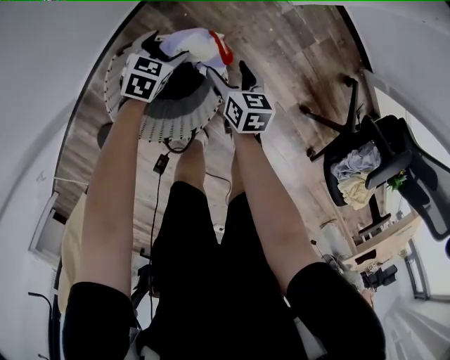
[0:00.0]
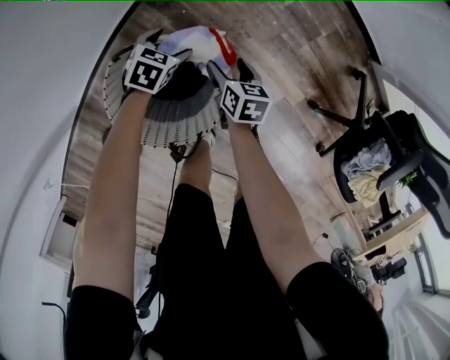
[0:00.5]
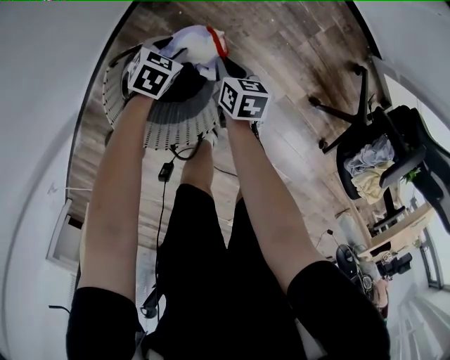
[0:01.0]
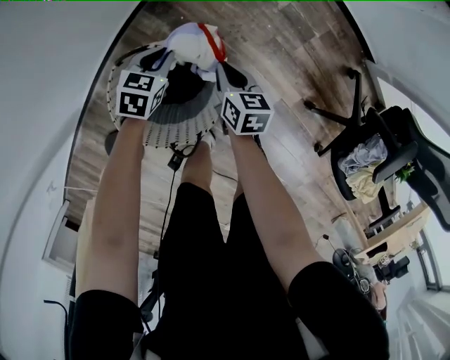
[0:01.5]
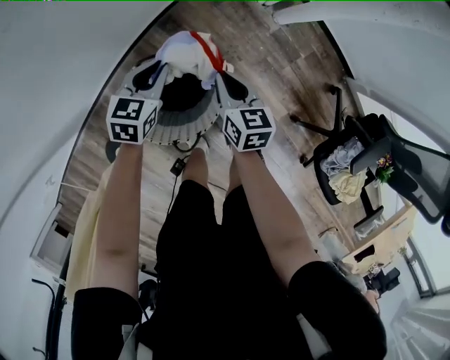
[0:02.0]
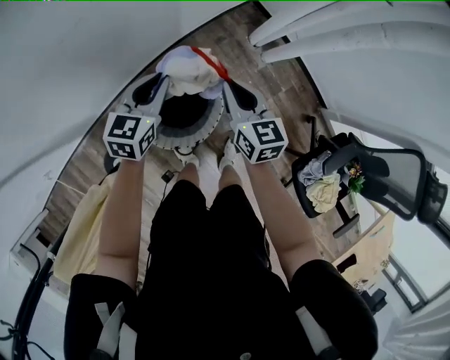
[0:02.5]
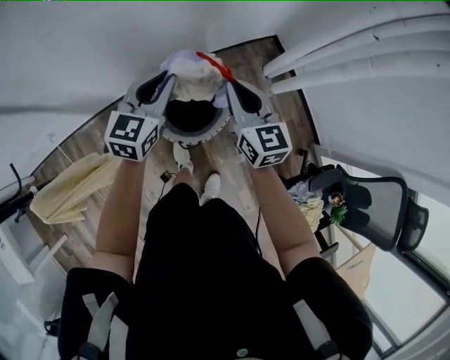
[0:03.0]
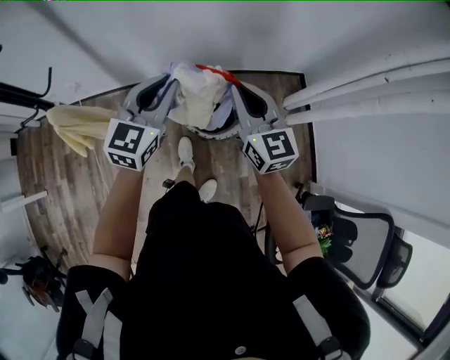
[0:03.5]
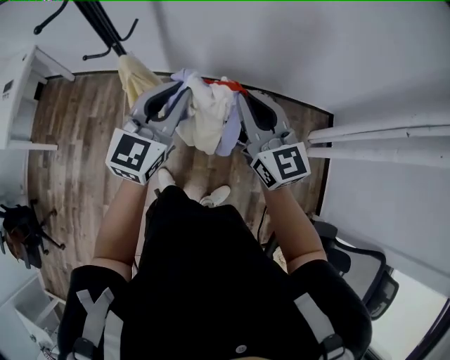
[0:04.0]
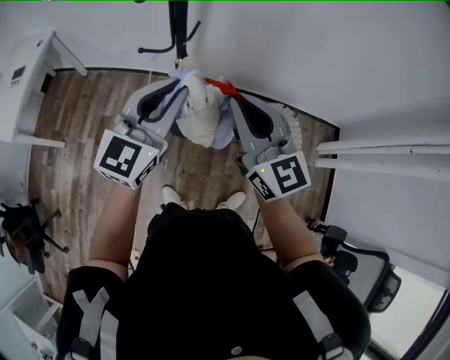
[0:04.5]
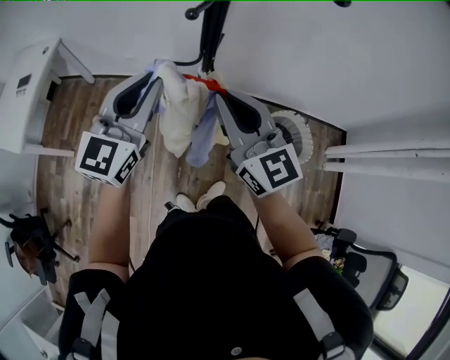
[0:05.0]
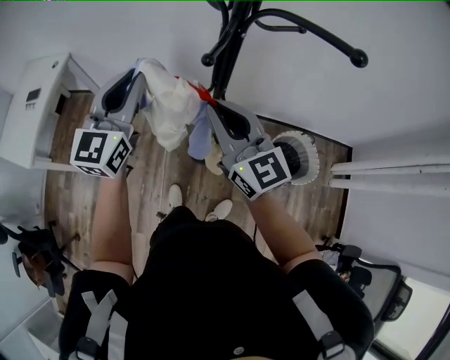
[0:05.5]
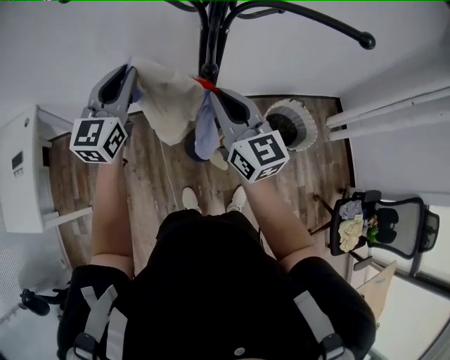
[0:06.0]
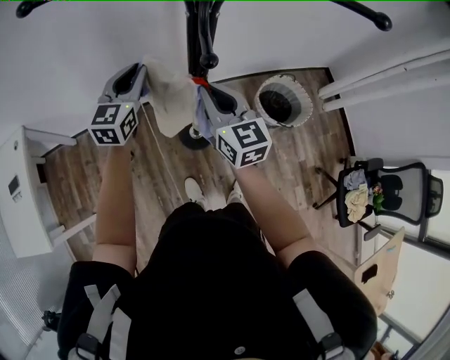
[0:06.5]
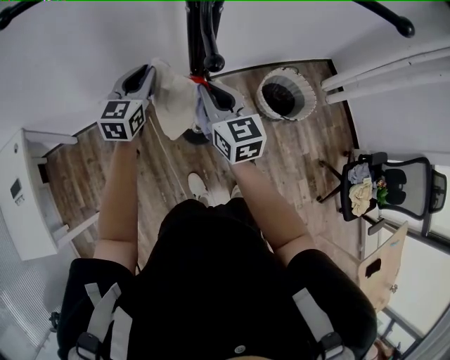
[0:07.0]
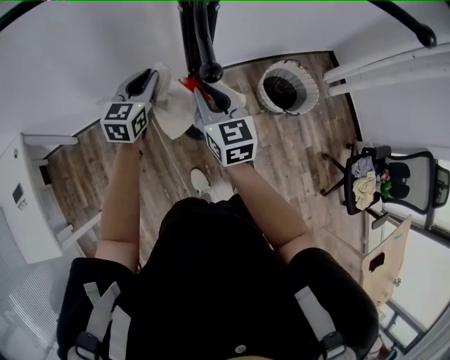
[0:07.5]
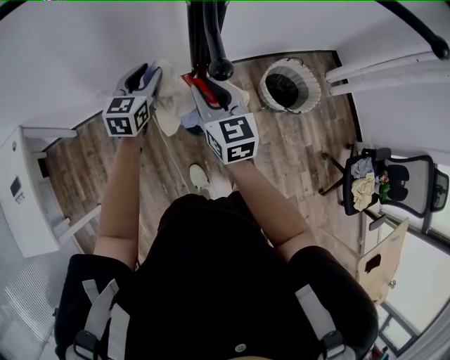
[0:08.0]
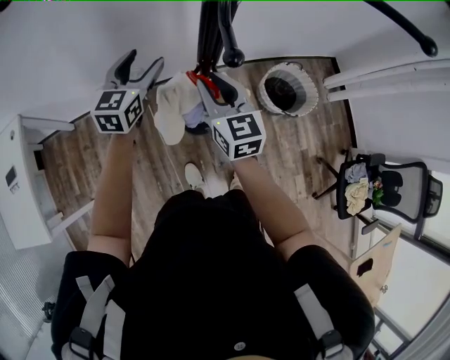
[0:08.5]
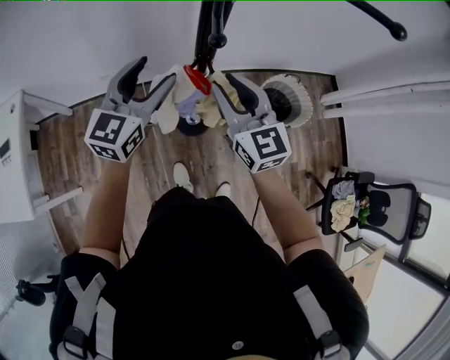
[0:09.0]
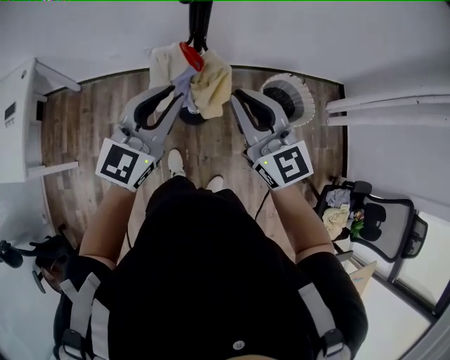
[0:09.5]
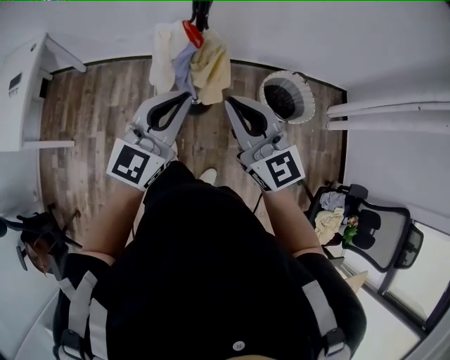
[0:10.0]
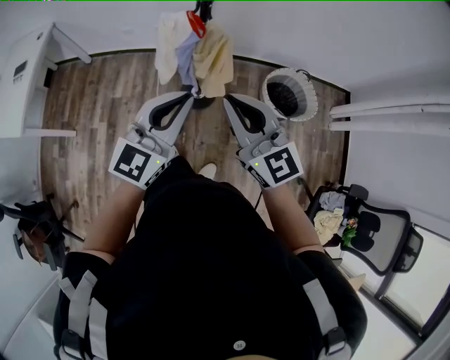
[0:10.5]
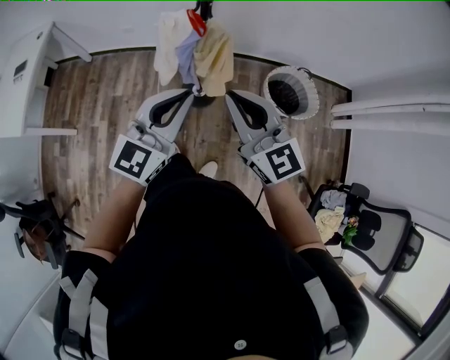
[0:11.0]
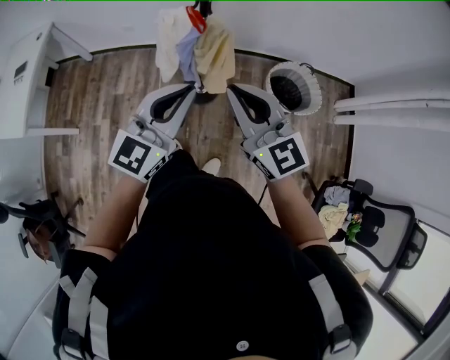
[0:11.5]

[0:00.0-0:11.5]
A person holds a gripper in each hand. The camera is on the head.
0:00.0 to 0:02.0: Both grippers move upward, roughly 20 cm. The right gripper closes its fingers, while the left gripper closes.
0:02.0 to 0:04.0: The two grippers travel together, roughly 60 cm. The left gripper tilts its fingers about 40 degrees upward. The right gripper is displaced upward by some 60 cm, and tilts its fingers roughly 30 degrees upward.
0:04.0 to 0:06.0: Both grippers are carried to the left and forward, roughly 50 cm.
0:06.0 to 0:07.5: The right gripper travels downward by some 15 cm, and swivels some 20 degrees; the left gripper is displaced downward and forward by roughly 20 cm, and turns by roughly 20 degrees.
0:07.5 to 0:09.5: The grippers both shift backward, upward and to the right by roughly 30 cm. The right gripper rotates approximately 30 degrees. Meanwhile the left gripper opens, then closes once more.
0:09.5 to 0:11.5: The right gripper is displaced backward by some 10 cm; the left gripper shifts about 15 cm backward and to the right.

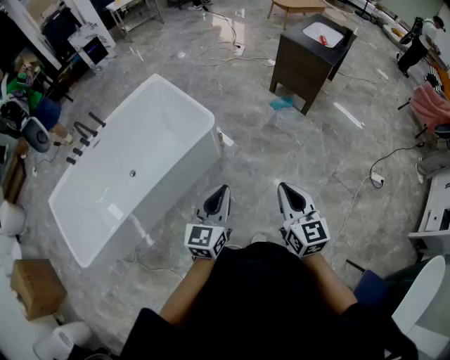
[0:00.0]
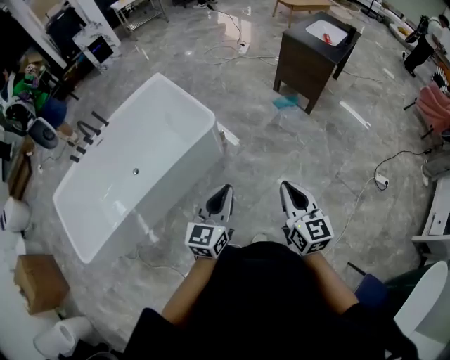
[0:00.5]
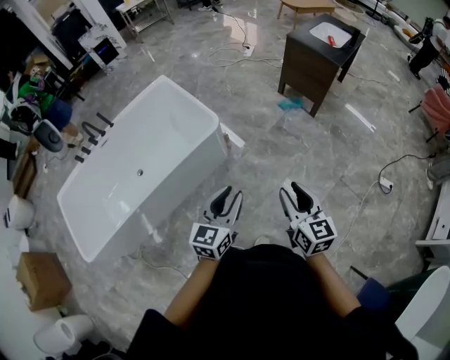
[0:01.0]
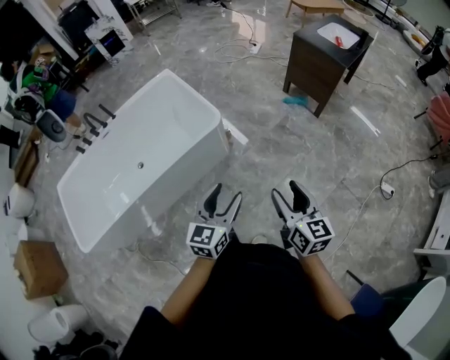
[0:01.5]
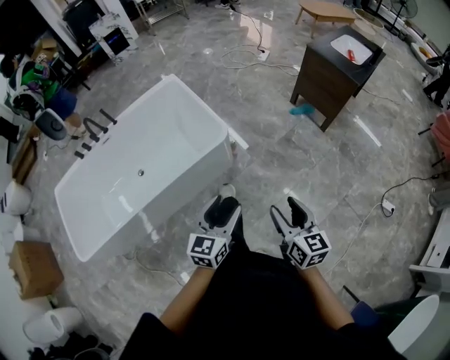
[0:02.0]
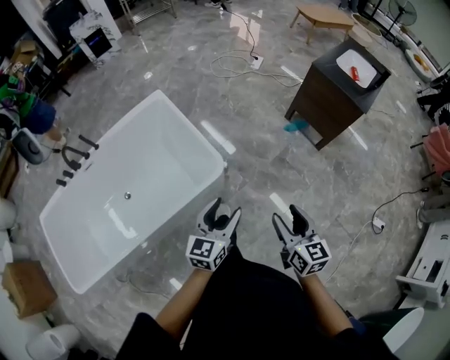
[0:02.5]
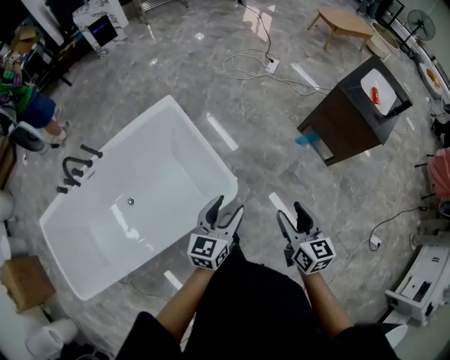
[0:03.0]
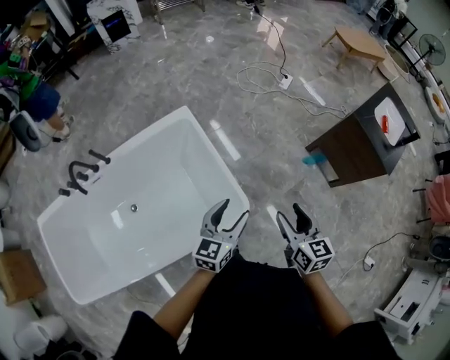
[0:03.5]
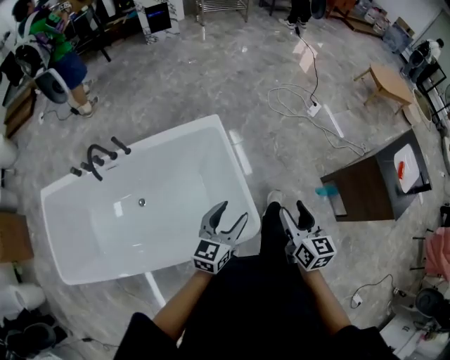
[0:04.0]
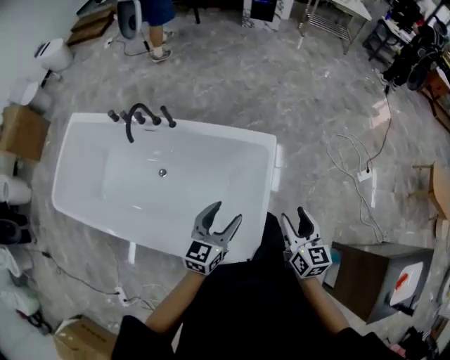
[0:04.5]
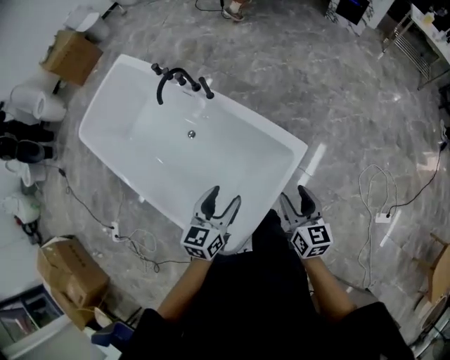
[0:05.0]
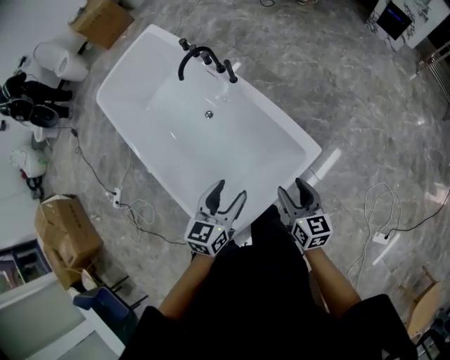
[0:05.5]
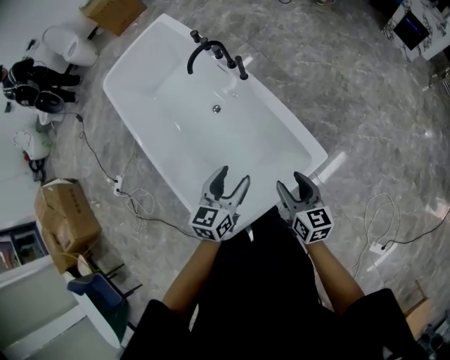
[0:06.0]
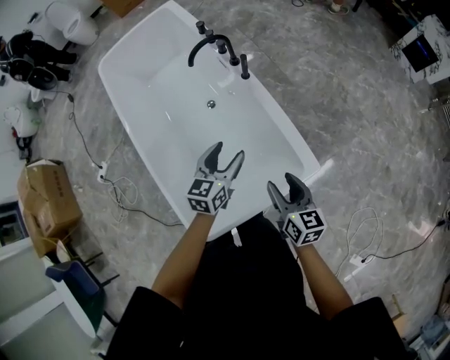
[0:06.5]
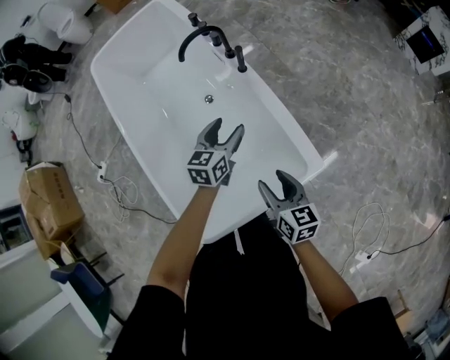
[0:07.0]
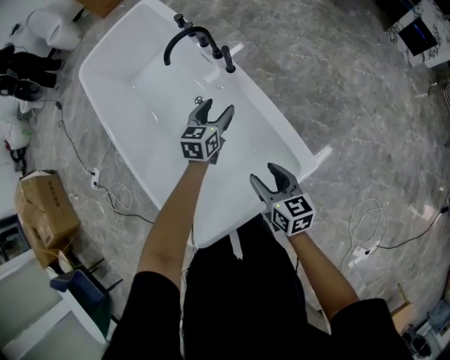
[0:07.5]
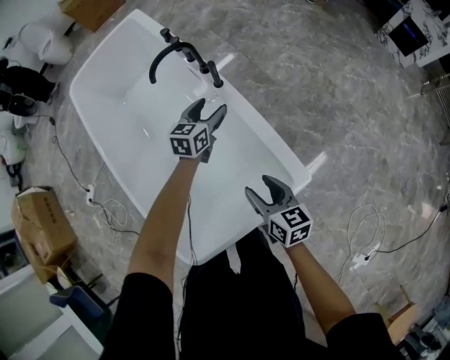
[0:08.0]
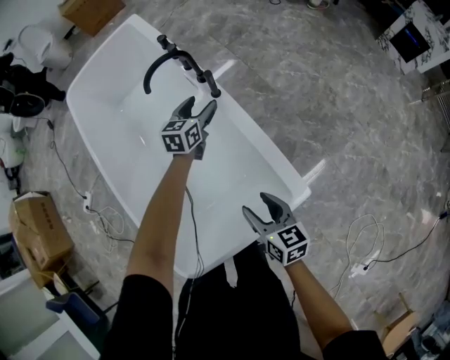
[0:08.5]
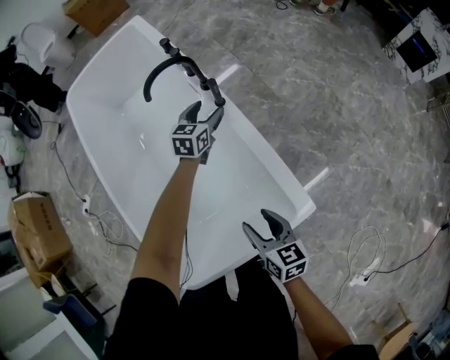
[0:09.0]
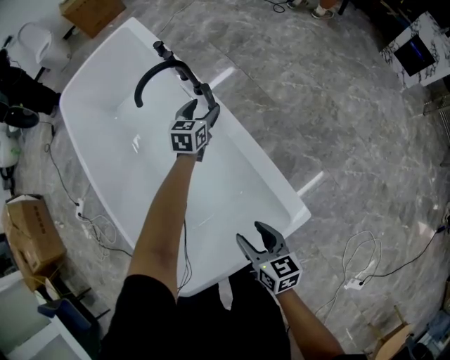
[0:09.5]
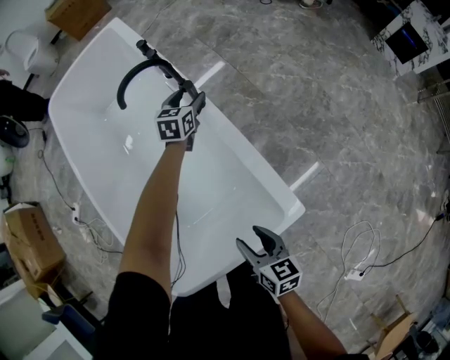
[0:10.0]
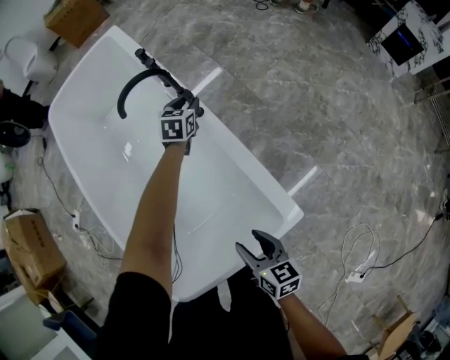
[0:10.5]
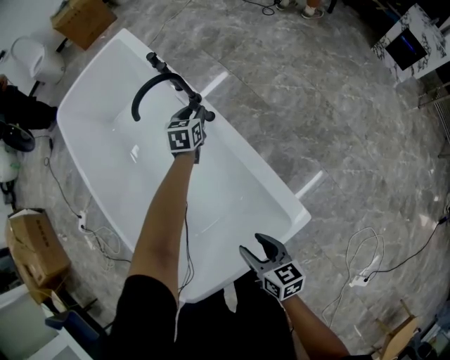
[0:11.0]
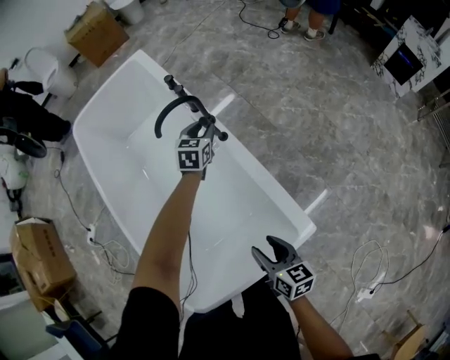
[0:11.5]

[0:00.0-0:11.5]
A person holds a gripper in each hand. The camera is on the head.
0:00.0 to 0:02.0: The right gripper goes approximately 10 cm forward and downward, and opens up. Meanwhile the left gripper is displaced forward by some 5 cm, and opens its fingers.
0:02.0 to 0:04.0: Both grippers are carried forward and to the left, some 60 cm.
0:04.0 to 0:06.0: The left gripper shifts by about 25 cm, and swivels some 80 degrees, while the right gripper moves about 40 cm, and rotates approximately 80 degrees.
0:06.0 to 0:07.5: The right gripper goes approximately 10 cm downward and forward, while the left gripper heads forward and downward, covering approximately 30 cm.
0:07.5 to 0:09.5: The left gripper goes roughly 20 cm forward and downward. The right gripper travels downward by roughly 5 cm.
0:09.5 to 0:11.5: The left gripper moves upward, roughly 5 cm, and closes up.

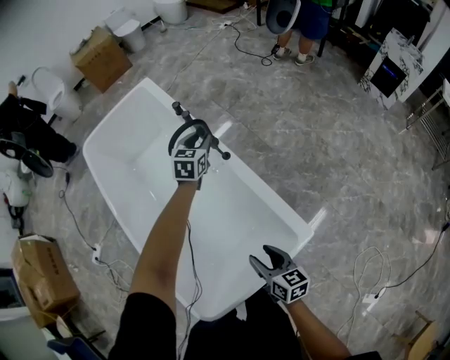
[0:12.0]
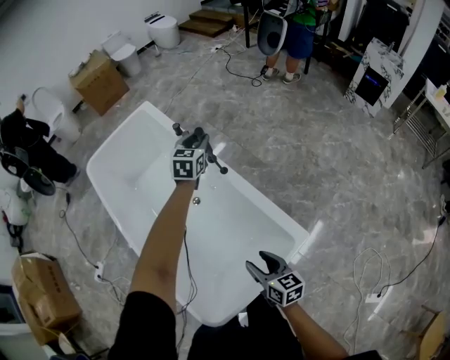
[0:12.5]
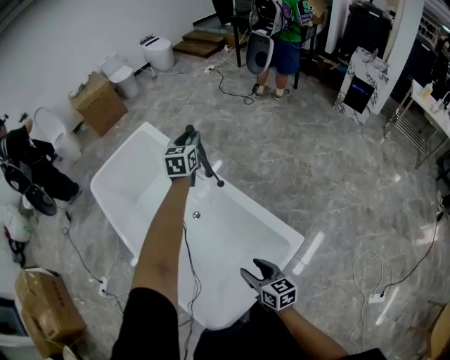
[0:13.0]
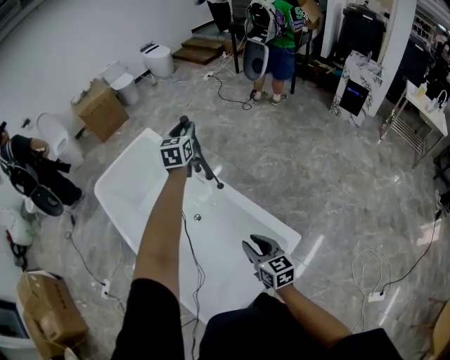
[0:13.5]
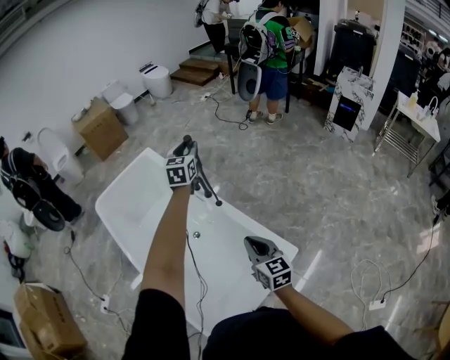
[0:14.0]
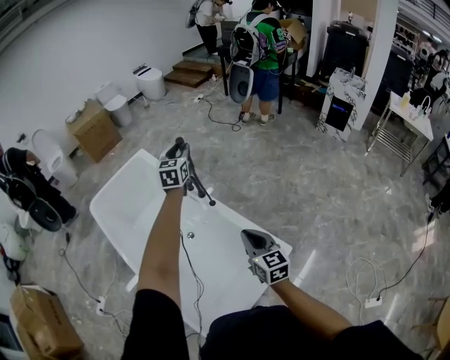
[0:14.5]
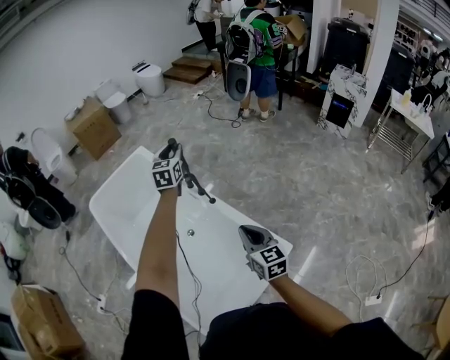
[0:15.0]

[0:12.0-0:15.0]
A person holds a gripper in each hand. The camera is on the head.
0:12.0 to 0:13.5: The right gripper is displaced upward by approximately 15 cm, and closes its fingers. The left gripper travels upward by roughly 30 cm.
0:13.5 to 0:15.0: The right gripper heads upward, covering some 10 cm, and closes its fingers.
